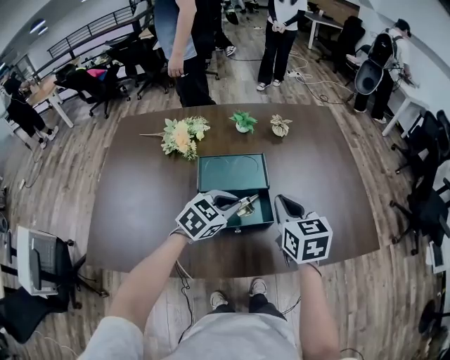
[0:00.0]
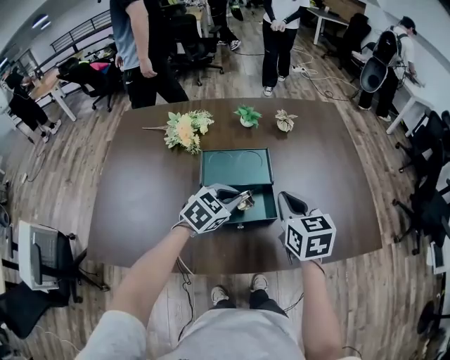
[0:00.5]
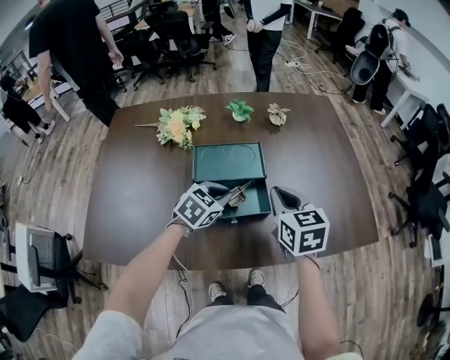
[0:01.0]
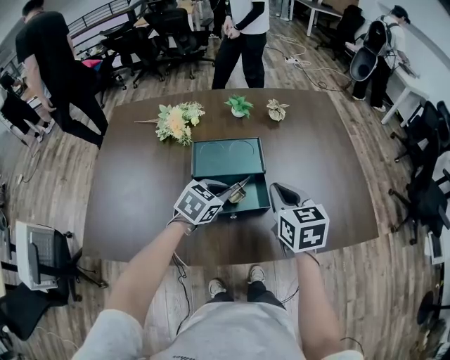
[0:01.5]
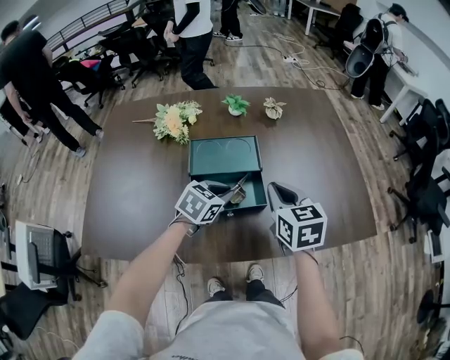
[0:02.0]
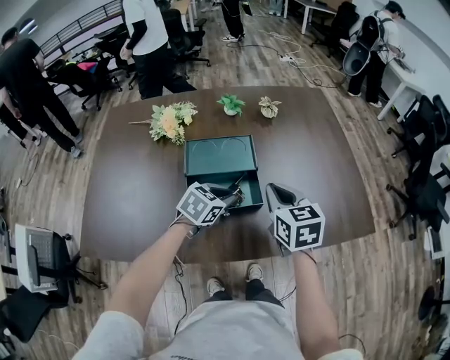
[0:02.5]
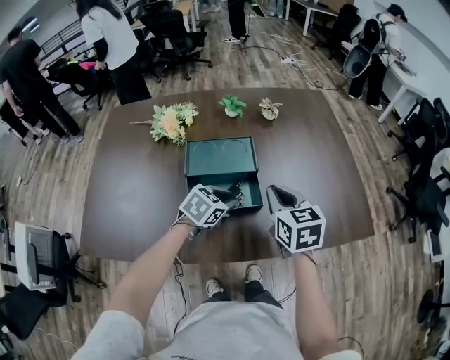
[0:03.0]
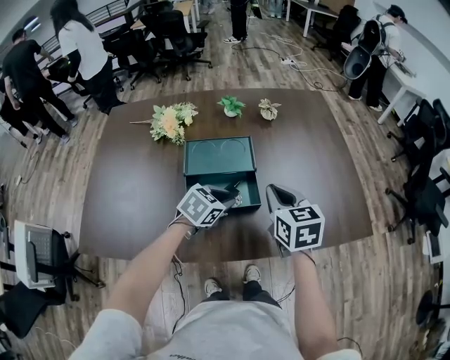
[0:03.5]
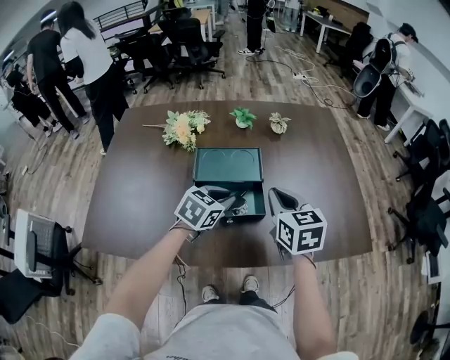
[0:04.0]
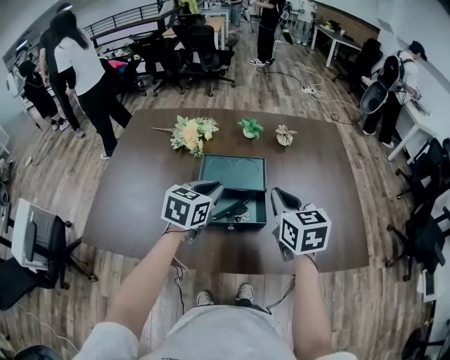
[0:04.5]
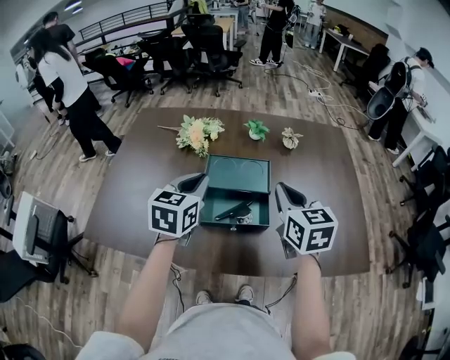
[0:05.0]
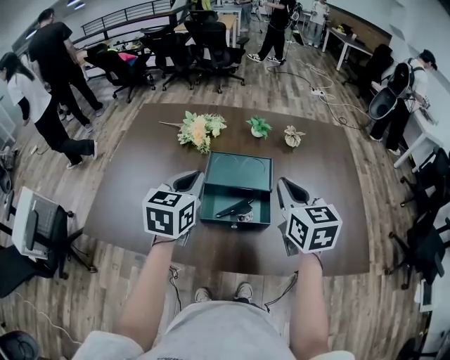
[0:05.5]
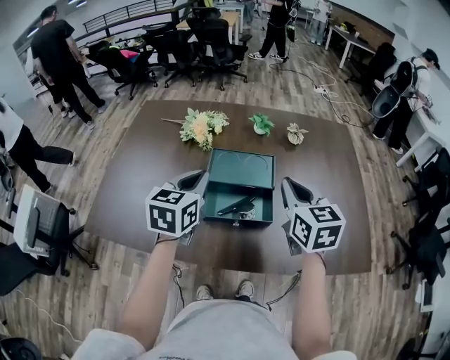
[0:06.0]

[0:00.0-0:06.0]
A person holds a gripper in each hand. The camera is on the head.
0:00.0 to 0:02.0: There are only small adjustments of the grippers.
0:02.0 to 0:04.0: The grippers stay close to where they were, moving slightly.
0:04.0 to 0:06.0: The left gripper heads upward and to the left, covering approximately 15 cm, and turns by roughly 40 degrees. Meanwhile the right gripper heads upward, covering roughly 5 cm.

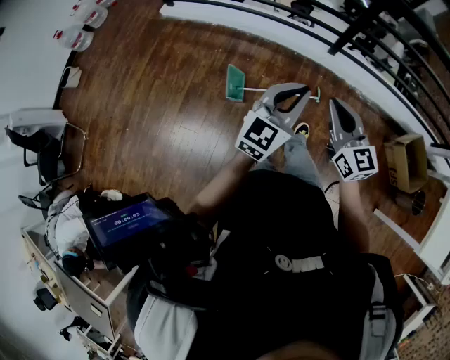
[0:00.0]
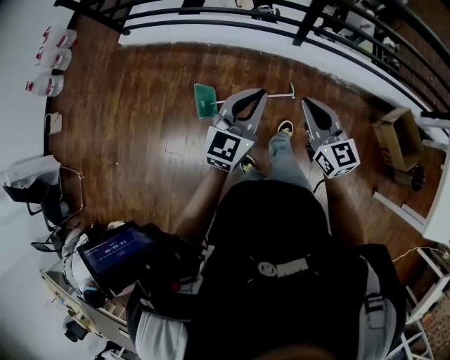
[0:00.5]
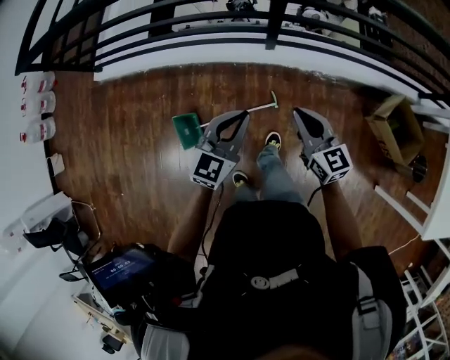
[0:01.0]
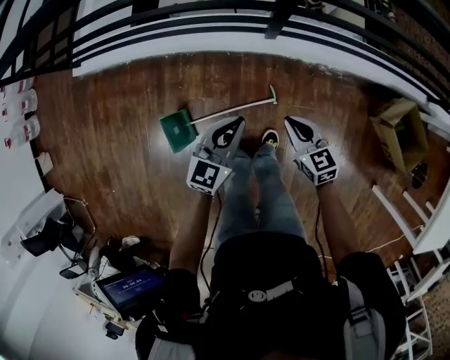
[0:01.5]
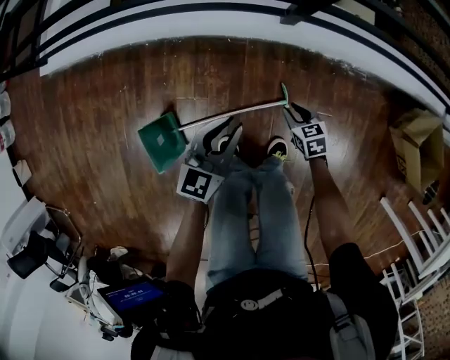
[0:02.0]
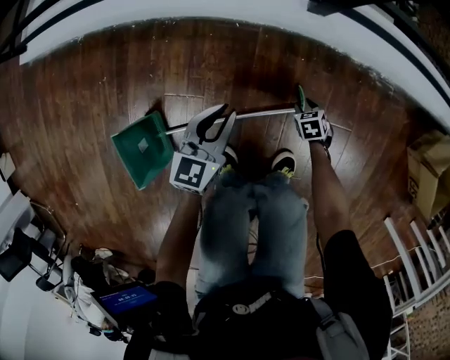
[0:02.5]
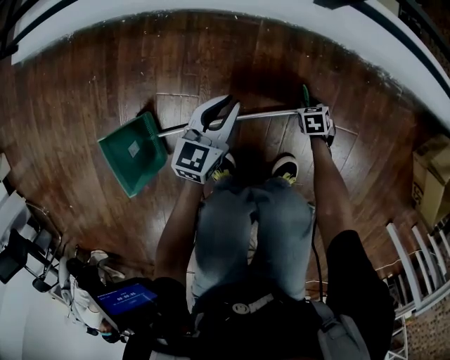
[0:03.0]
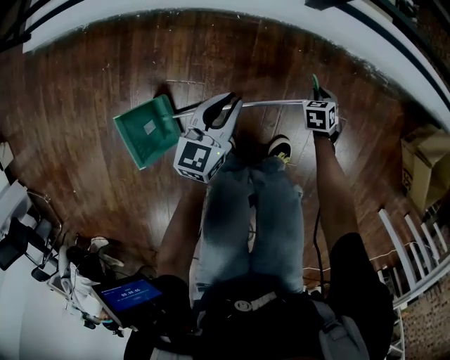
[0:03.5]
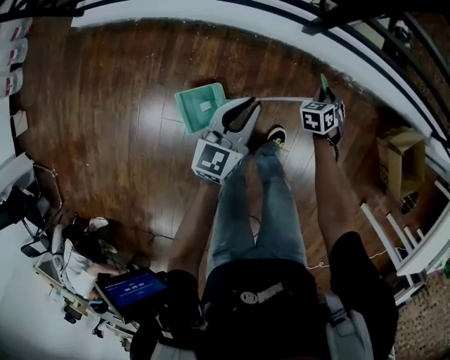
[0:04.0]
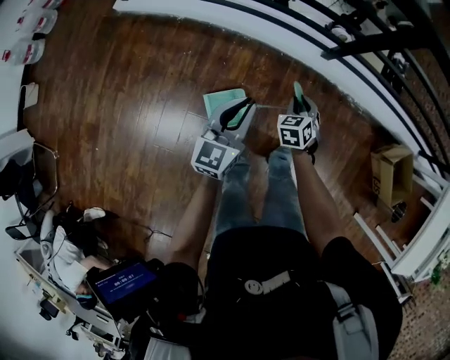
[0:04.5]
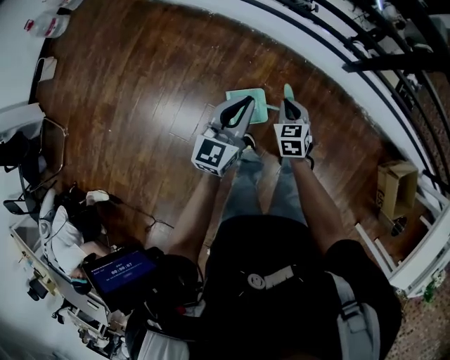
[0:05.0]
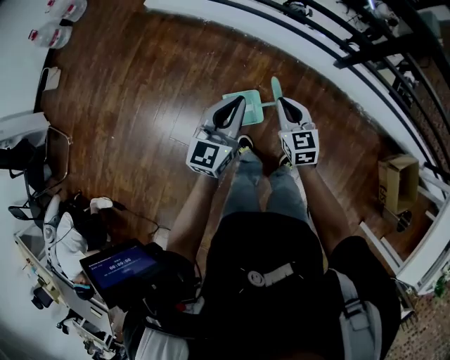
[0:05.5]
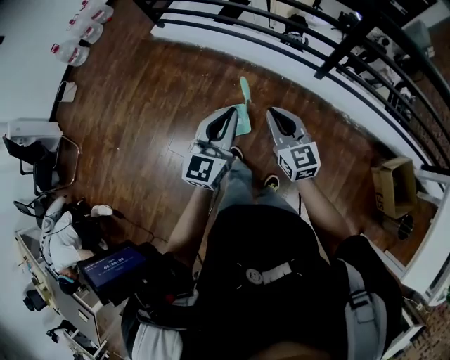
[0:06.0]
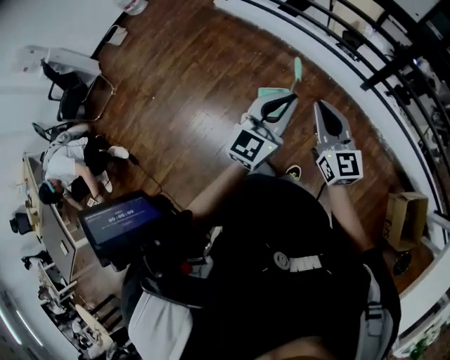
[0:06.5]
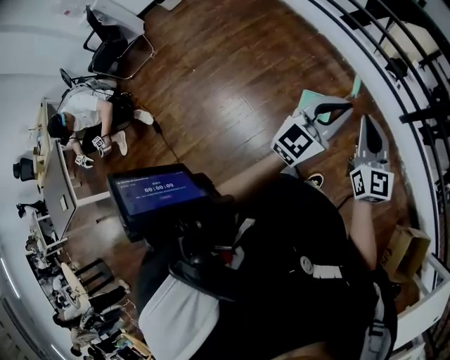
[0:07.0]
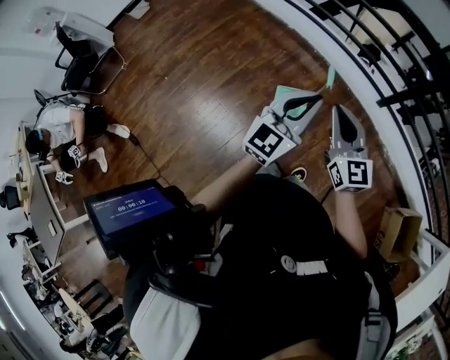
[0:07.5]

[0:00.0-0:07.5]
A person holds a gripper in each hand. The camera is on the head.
0:00.0 to 0:02.0: Both grippers travel together downward and forward, approximately 60 cm. The left gripper changes its angle by roughly 20 degrees, and opens its fingers. The right gripper tilts its fingers about 50 degrees downward, and opens up.
0:02.0 to 0:04.0: The left gripper reaches roughly 30 cm downward, then returns. The right gripper travels downward and back again, roughly 30 cm each way, and changes its angle by roughly 40 degrees.
0:04.0 to 0:05.5: The right gripper ends up roughly 50 cm from where it was, and turns by some 50 degrees, while the left gripper ends up roughly 35 cm from where it was.
0:05.5 to 0:07.5: The right gripper shifts some 30 cm upward and backward, and changes its angle by approximately 30 degrees. Meanwhile the left gripper heads backward, upward and to the right, covering roughly 25 cm.

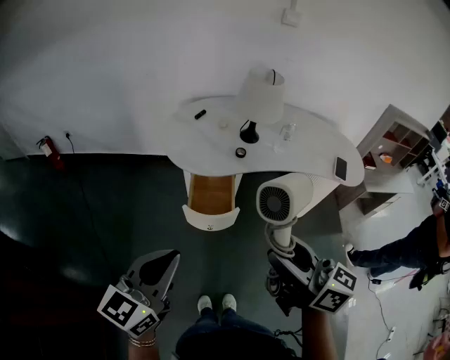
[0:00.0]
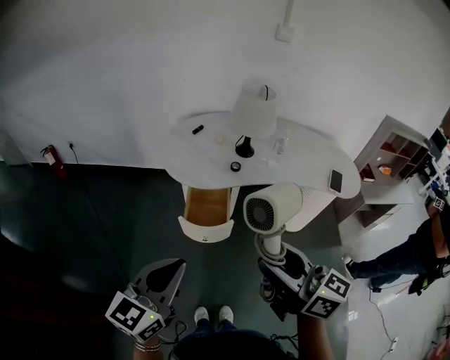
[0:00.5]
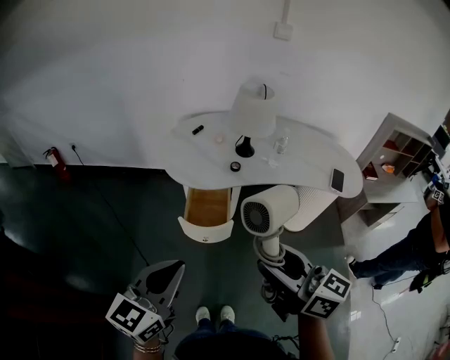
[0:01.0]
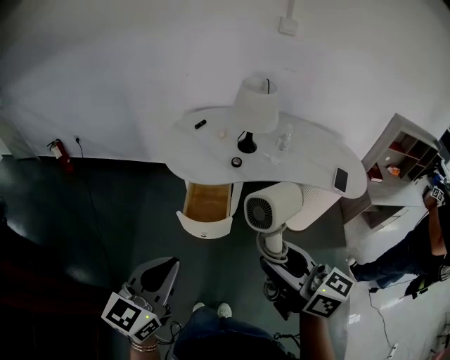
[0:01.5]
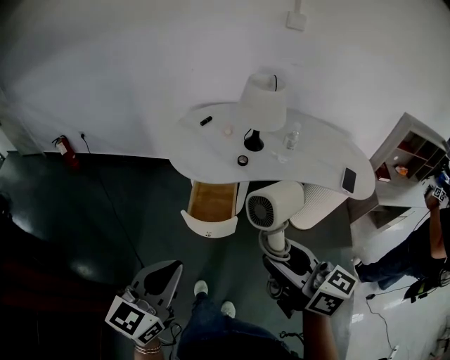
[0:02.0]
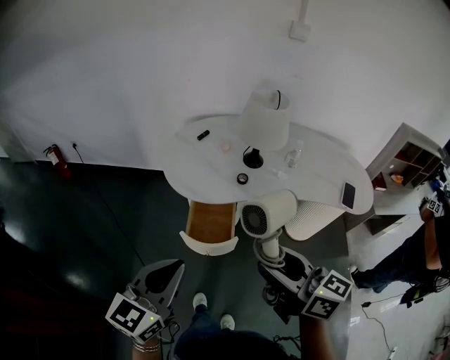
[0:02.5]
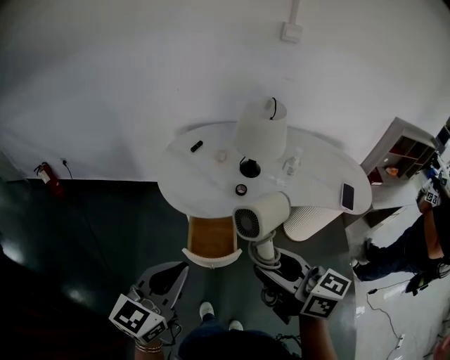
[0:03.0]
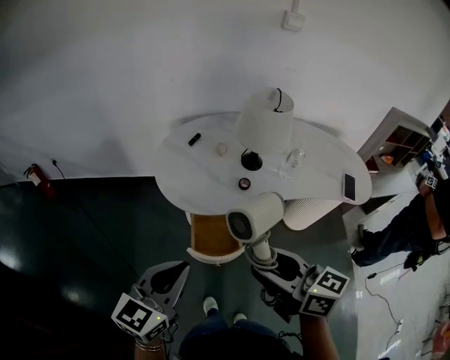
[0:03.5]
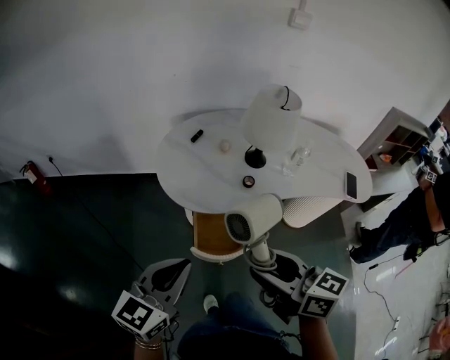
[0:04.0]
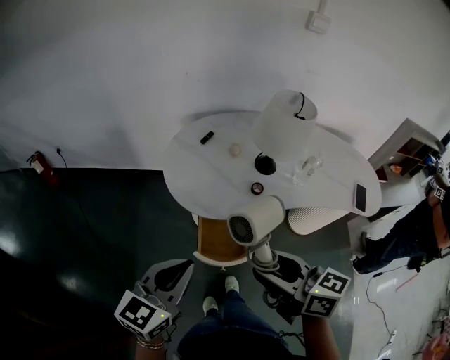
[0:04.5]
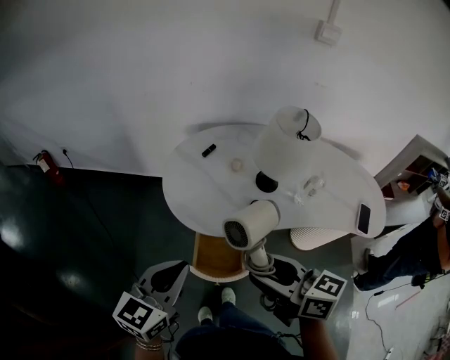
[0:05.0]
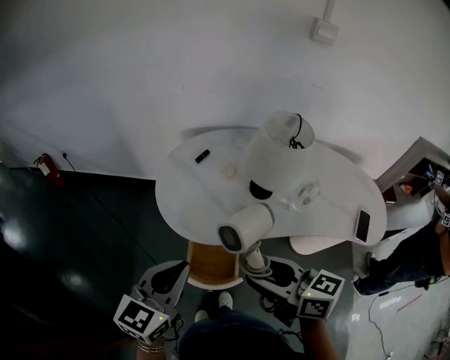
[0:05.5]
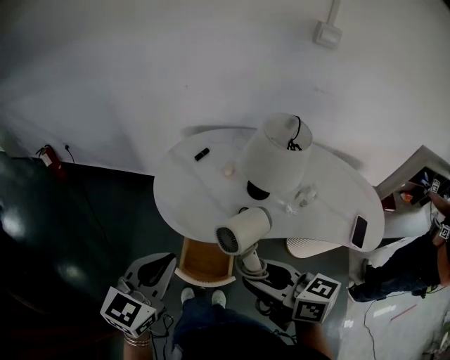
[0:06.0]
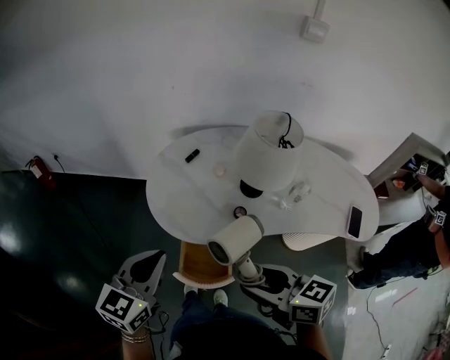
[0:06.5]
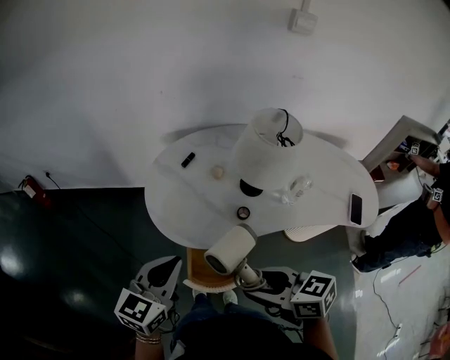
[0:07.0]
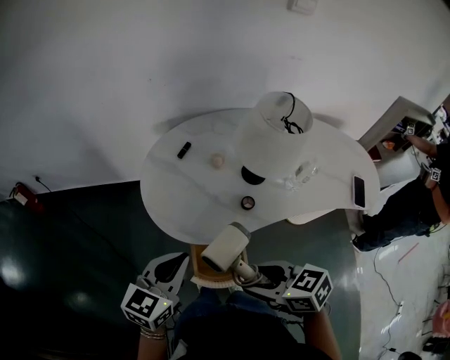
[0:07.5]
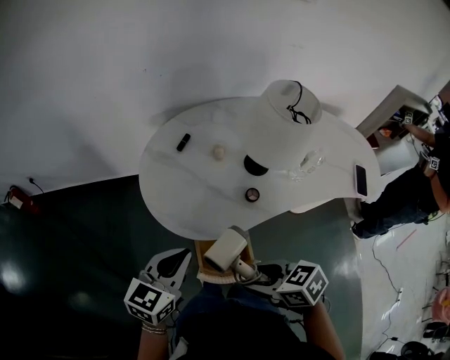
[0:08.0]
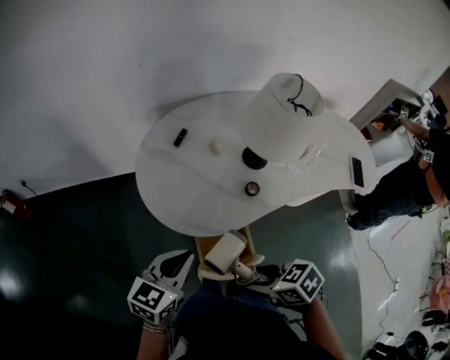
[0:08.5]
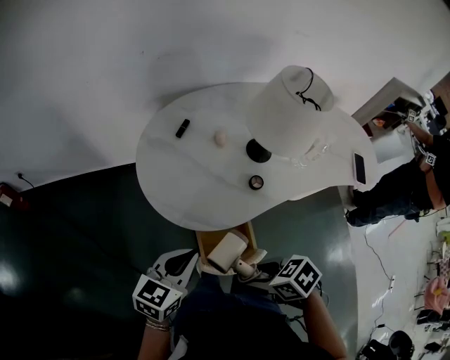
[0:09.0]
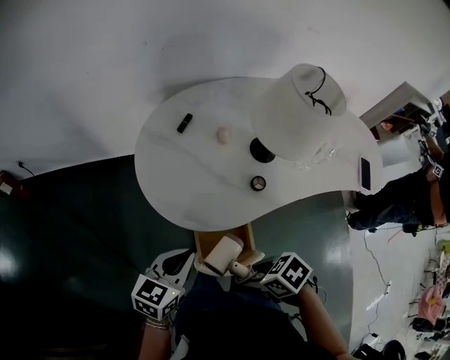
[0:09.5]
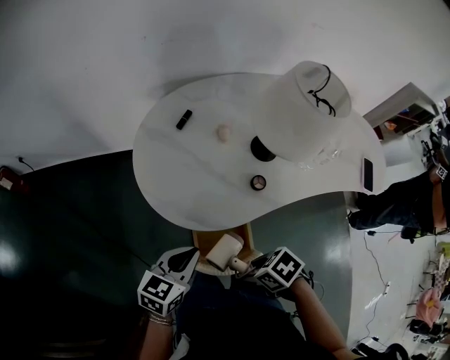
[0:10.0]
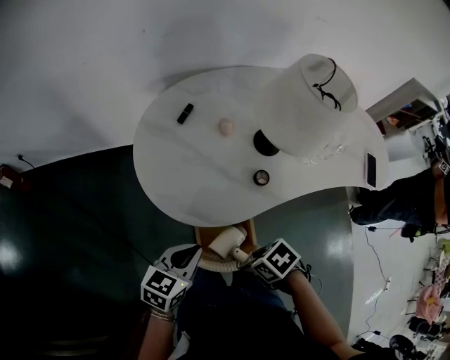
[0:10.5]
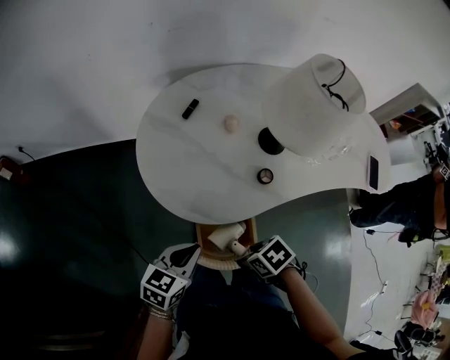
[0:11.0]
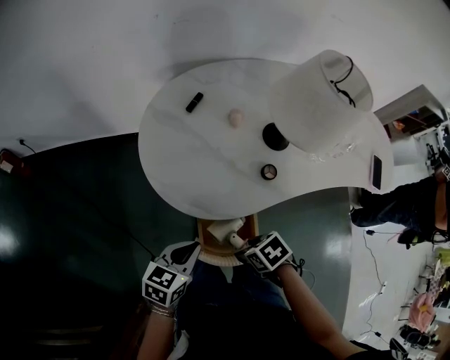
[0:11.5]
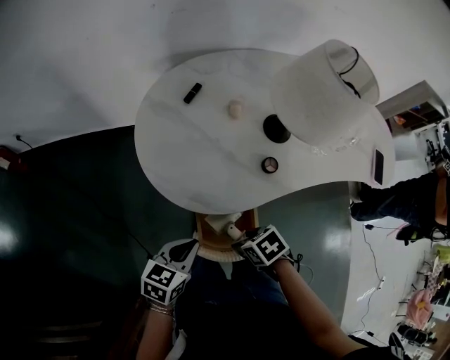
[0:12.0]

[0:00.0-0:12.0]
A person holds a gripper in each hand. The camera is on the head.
0:00.0 to 0:02.0: Both grippers travel together to the right, roughly 5 cm.
0:02.0 to 0:04.0: The grippers both shift forward and to the left by about 20 cm.
0:04.0 to 0:06.0: The grippers both shift forward and to the right by roughly 10 cm.
0:06.0 to 0:08.0: The right gripper moves downward and to the left, some 15 cm, and swivels some 30 degrees. Meanwhile the left gripper moves downward and forward, approximately 15 cm, and rotates some 20 degrees.
0:08.0 to 0:10.0: The grippers both shift downward by about 10 cm. The right gripper swivels about 30 degrees.
0:10.0 to 0:12.0: Both grippers move downward, about 5 cm.

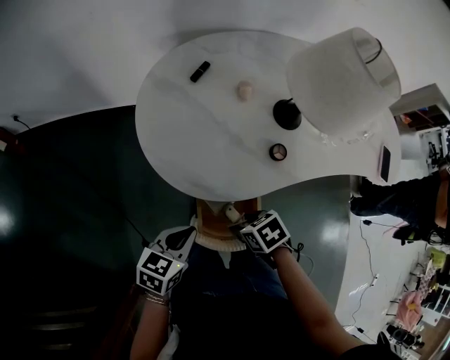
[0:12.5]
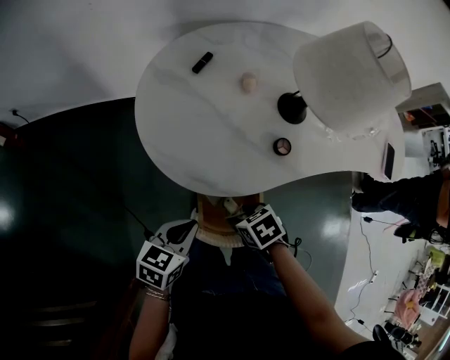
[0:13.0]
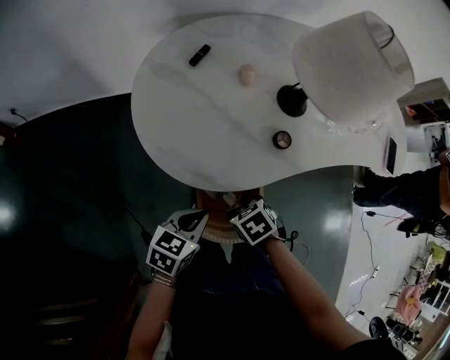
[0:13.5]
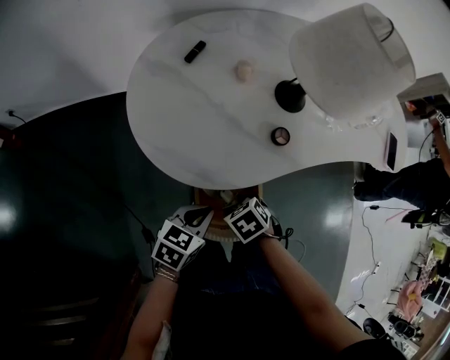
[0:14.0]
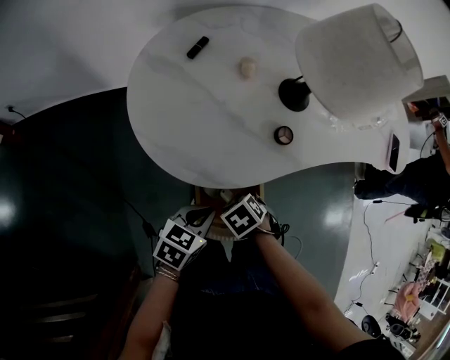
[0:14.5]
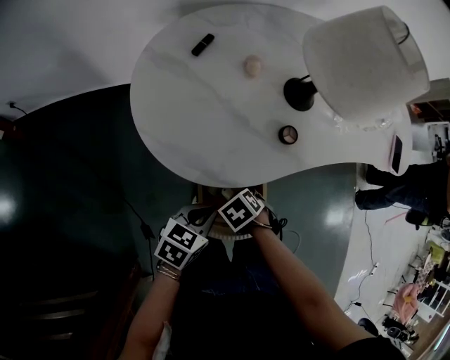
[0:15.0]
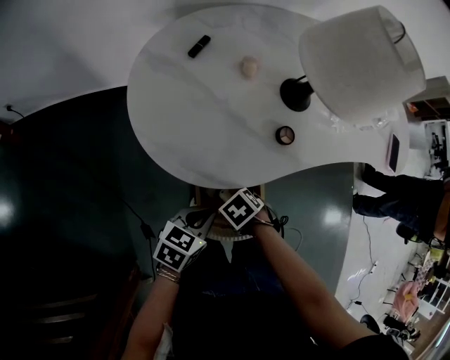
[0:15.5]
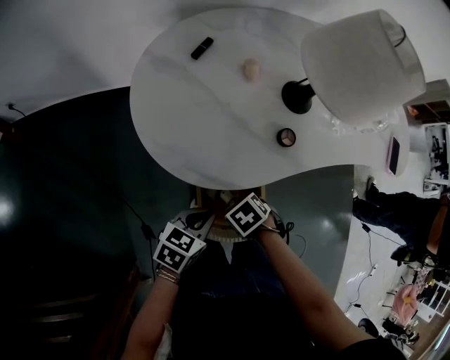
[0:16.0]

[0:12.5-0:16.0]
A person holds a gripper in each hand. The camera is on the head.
0:12.5 to 0:14.5: The right gripper is displaced downward by about 5 cm. The left gripper shifts by roughly 5 cm.
0:14.5 to 0:16.0: The grippers move only a little.
